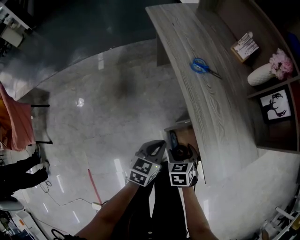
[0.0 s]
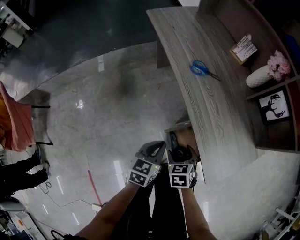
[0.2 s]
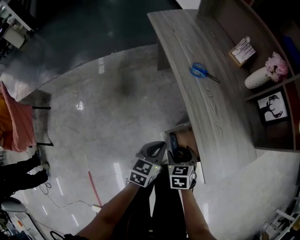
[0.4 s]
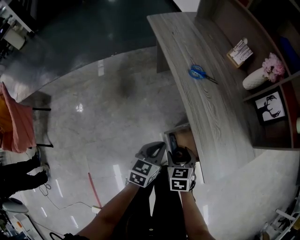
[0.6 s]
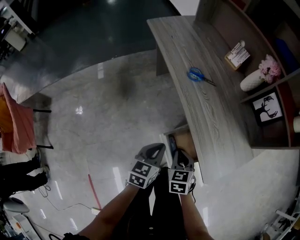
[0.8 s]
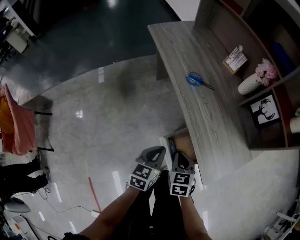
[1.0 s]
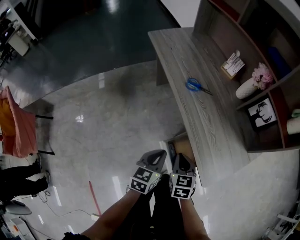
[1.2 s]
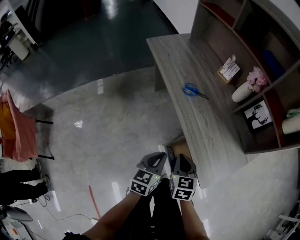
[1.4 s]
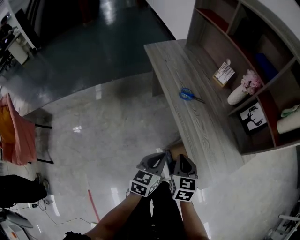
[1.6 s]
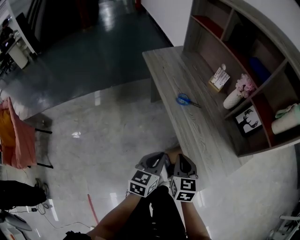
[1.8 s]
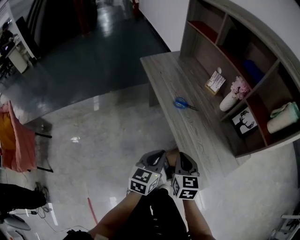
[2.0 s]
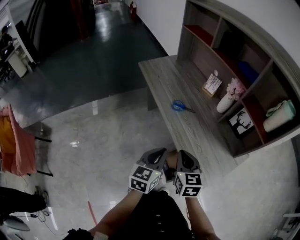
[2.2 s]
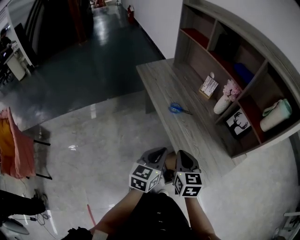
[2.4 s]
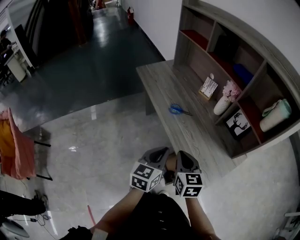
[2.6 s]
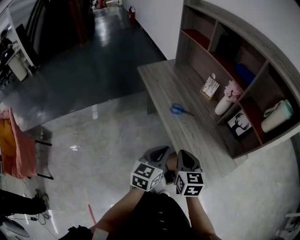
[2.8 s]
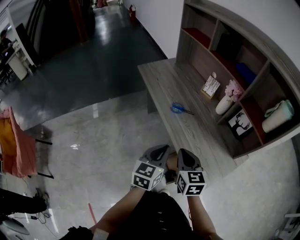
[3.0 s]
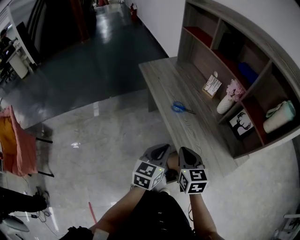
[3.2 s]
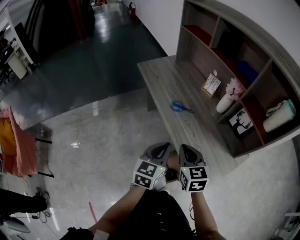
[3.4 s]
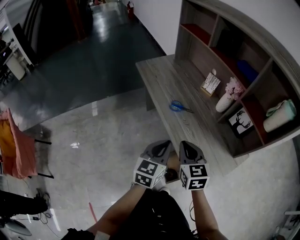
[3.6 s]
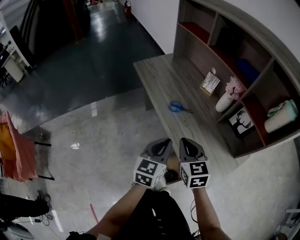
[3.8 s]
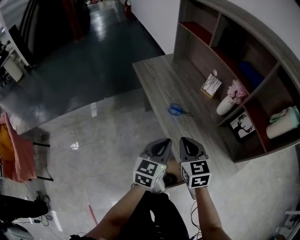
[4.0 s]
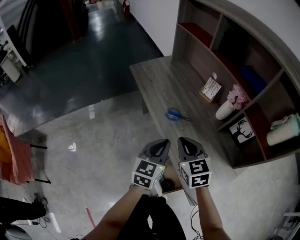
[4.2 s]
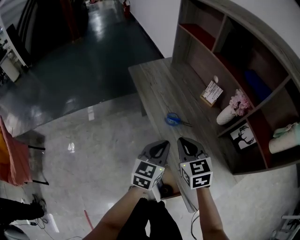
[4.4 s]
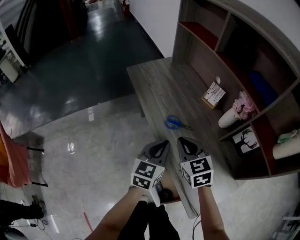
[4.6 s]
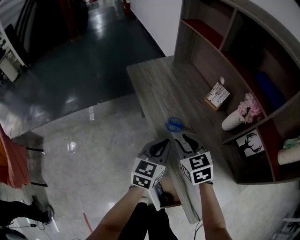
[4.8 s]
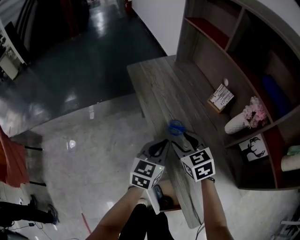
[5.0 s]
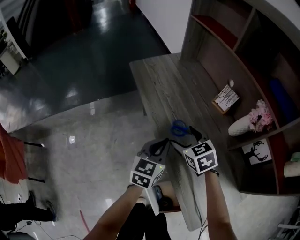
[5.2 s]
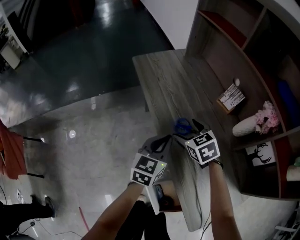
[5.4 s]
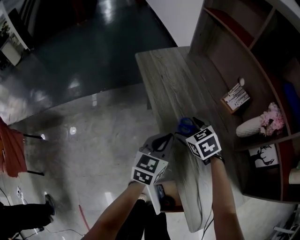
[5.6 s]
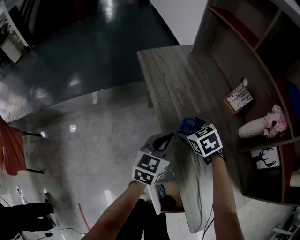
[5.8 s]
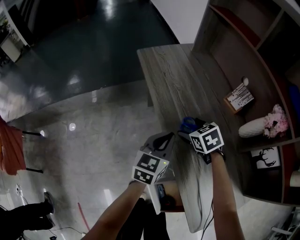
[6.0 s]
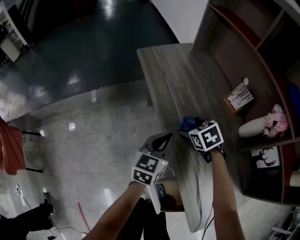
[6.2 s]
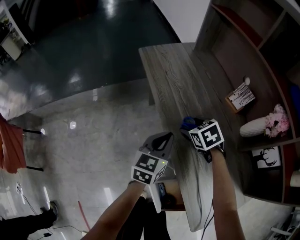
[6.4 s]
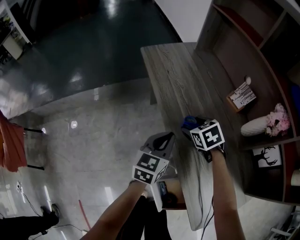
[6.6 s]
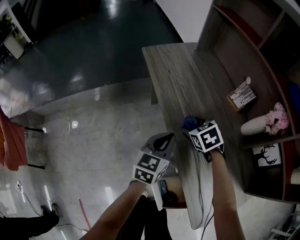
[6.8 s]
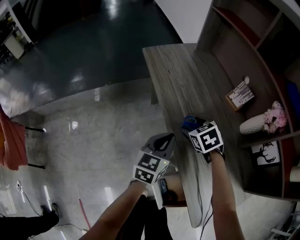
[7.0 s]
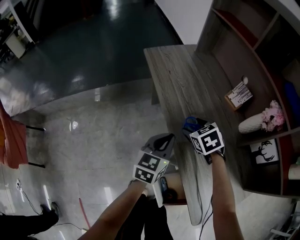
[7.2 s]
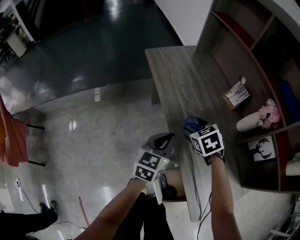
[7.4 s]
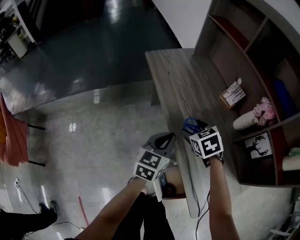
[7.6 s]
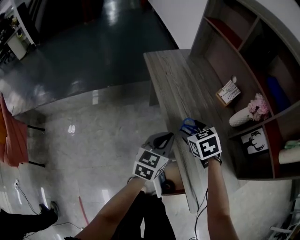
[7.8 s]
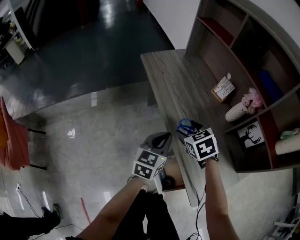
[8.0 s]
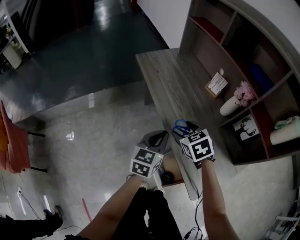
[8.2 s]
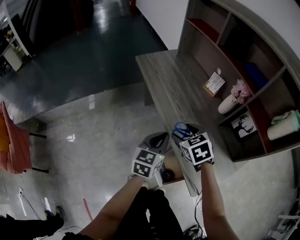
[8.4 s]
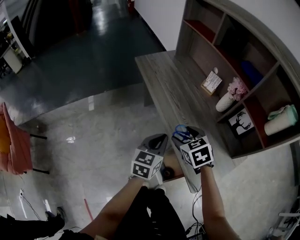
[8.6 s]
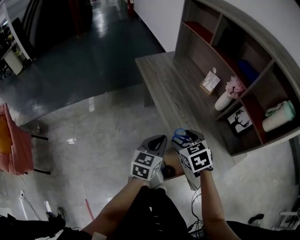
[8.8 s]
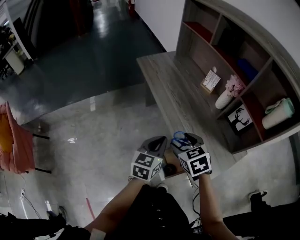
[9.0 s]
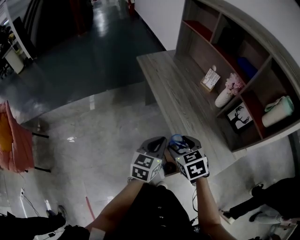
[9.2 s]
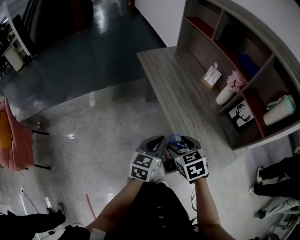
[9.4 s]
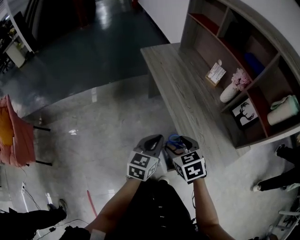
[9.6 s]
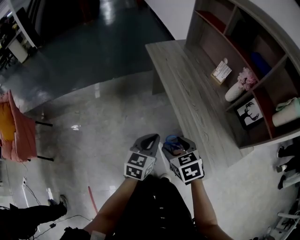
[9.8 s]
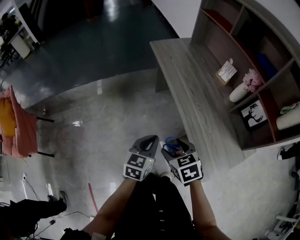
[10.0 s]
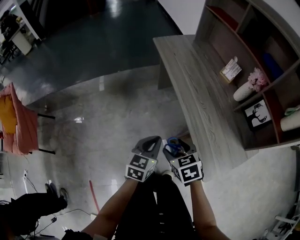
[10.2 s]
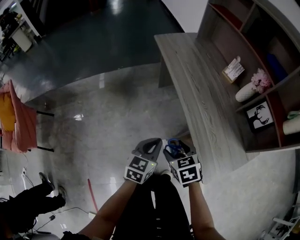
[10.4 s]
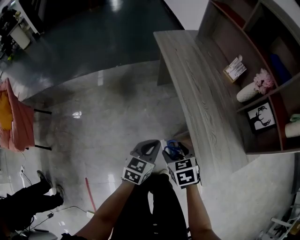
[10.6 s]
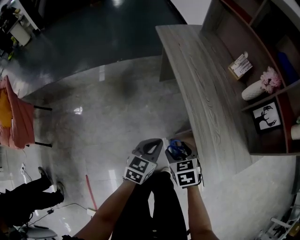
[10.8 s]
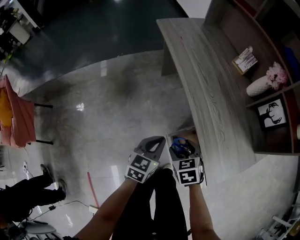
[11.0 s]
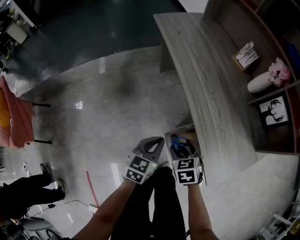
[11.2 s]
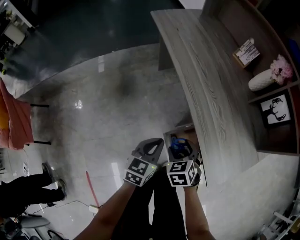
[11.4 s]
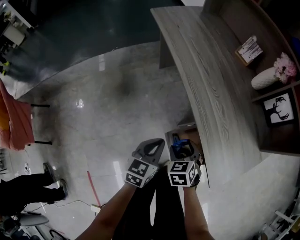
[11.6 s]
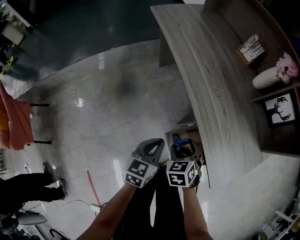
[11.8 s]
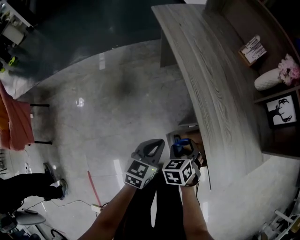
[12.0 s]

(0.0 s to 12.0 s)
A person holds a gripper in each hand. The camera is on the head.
0.0 s - 1.6 s: The left gripper goes approximately 10 cm upward; the right gripper shifts roughly 15 cm upward, swivels some 30 degrees, and closes.
1.6 s - 3.0 s: The right gripper is displaced upward by some 10 cm; the left gripper heads upward and forward, covering roughly 10 cm.
3.0 s - 4.4 s: Both grippers travel together forward, about 15 cm.
4.4 s - 6.0 s: The left gripper shifts approximately 15 cm forward and downward, while the right gripper goes roughly 25 cm downward and forward, turns by roughly 30 degrees, and opens up.
6.0 s - 7.6 s: The right gripper heads upward and backward, covering roughly 10 cm; the left gripper shifts roughly 5 cm backward.
7.6 s - 9.0 s: The left gripper moves backward, about 15 cm; the right gripper goes roughly 20 cm backward and upward.
9.0 s - 10.4 s: The left gripper is displaced downward and to the left by roughly 10 cm; the right gripper travels downward, to the left and backward by approximately 15 cm.
10.4 s - 12.0 s: Both grippers travel together downward, about 10 cm. The right gripper changes its angle by approximately 20 degrees.

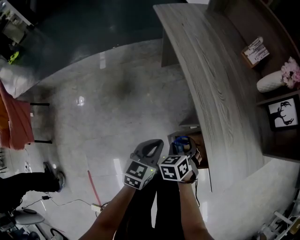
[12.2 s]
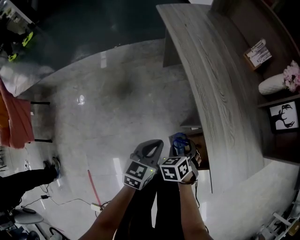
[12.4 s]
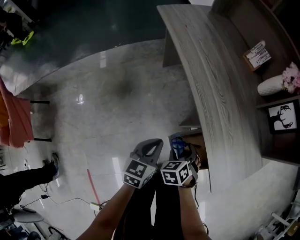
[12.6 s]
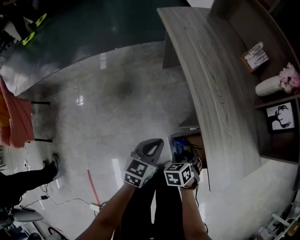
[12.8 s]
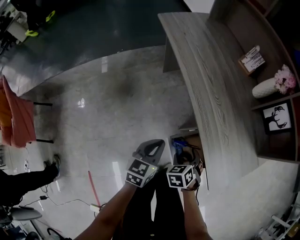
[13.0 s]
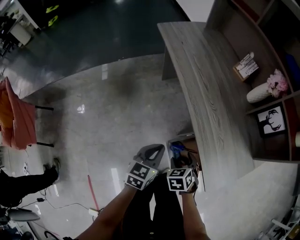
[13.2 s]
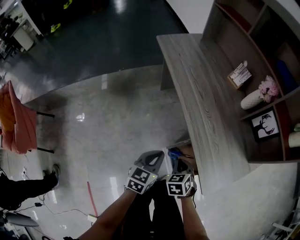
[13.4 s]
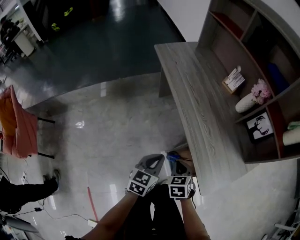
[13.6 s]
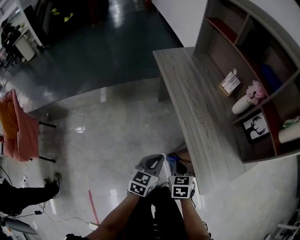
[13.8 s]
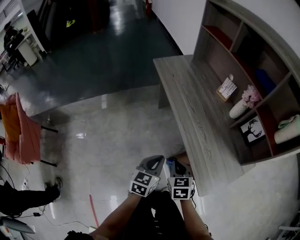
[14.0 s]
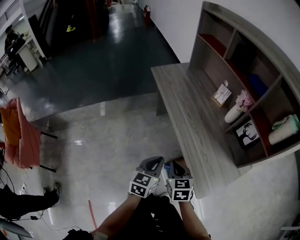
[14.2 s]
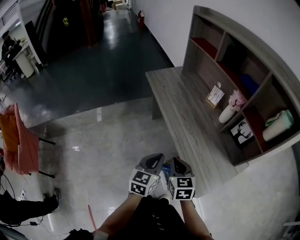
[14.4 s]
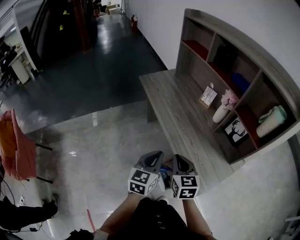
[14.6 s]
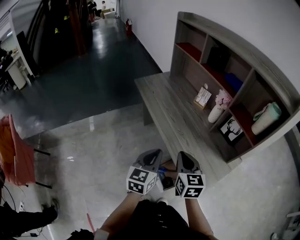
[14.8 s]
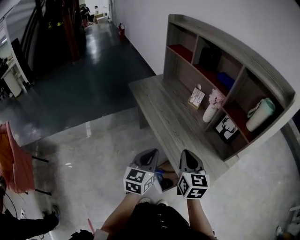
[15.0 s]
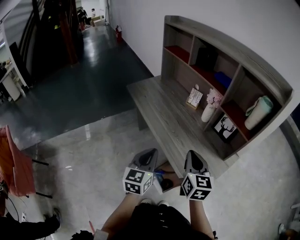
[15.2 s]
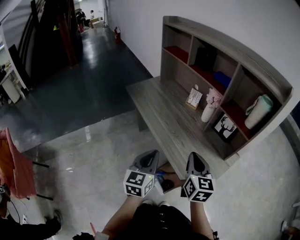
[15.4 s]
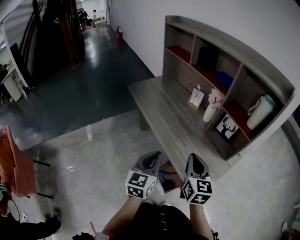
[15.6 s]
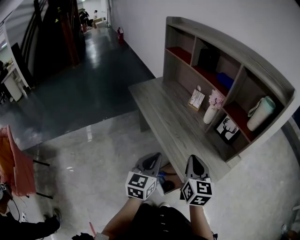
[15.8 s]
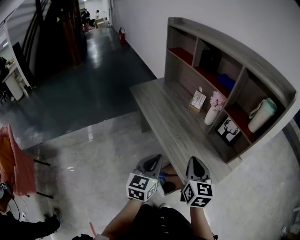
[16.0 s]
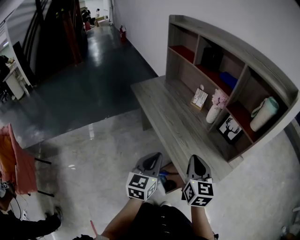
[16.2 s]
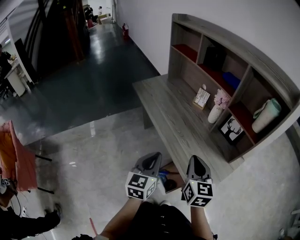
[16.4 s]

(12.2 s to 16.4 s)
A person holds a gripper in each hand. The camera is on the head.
12.2 s - 13.6 s: Both grippers move upward, about 10 cm. The right gripper closes its fingers.
13.6 s - 15.0 s: Both grippers move upward, approximately 20 cm. The right gripper tips its fingers upward by approximately 40 degrees.
15.0 s - 16.4 s: There are only small adjustments of the grippers.

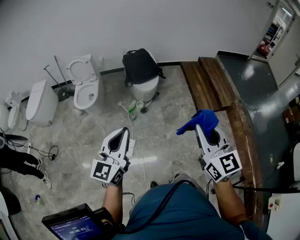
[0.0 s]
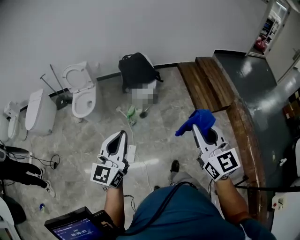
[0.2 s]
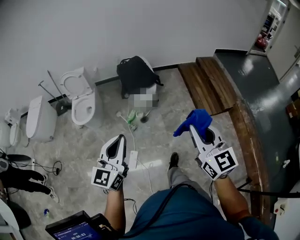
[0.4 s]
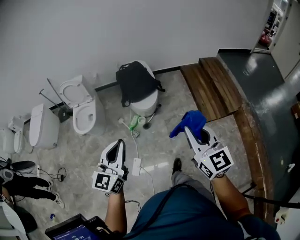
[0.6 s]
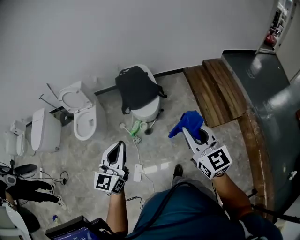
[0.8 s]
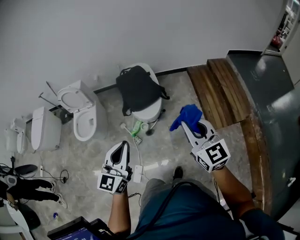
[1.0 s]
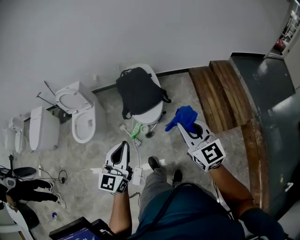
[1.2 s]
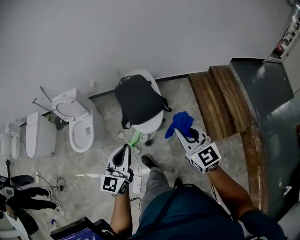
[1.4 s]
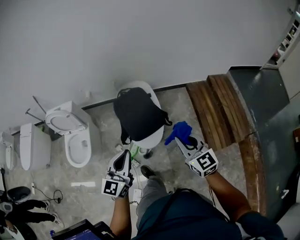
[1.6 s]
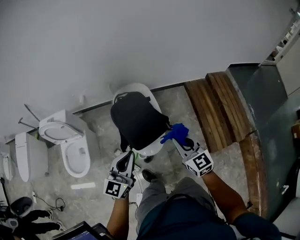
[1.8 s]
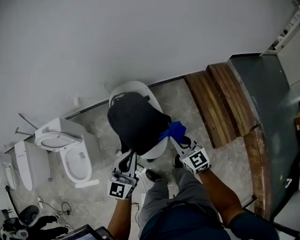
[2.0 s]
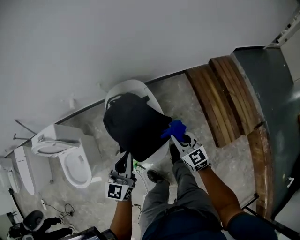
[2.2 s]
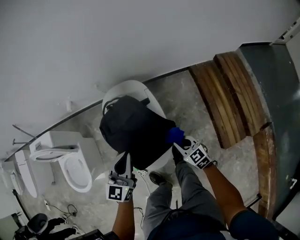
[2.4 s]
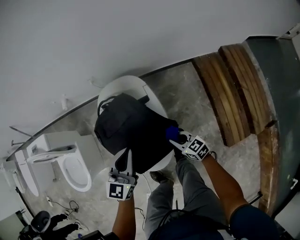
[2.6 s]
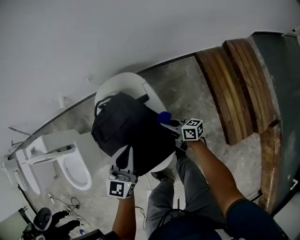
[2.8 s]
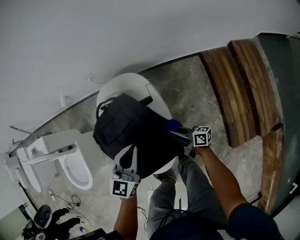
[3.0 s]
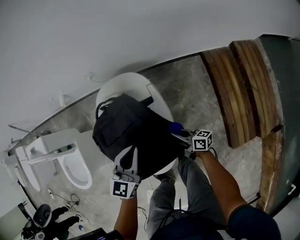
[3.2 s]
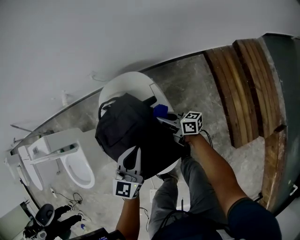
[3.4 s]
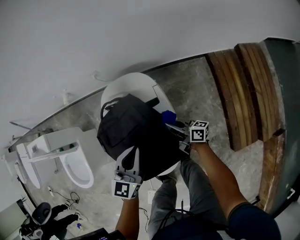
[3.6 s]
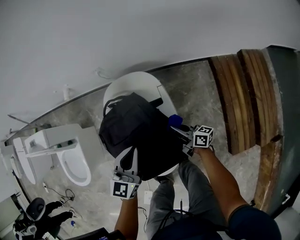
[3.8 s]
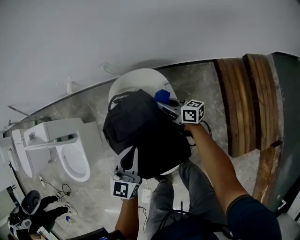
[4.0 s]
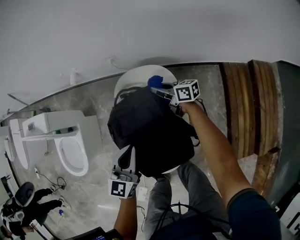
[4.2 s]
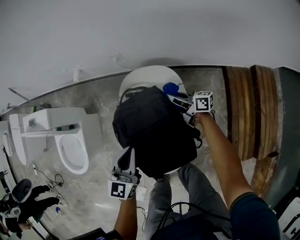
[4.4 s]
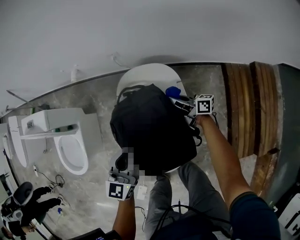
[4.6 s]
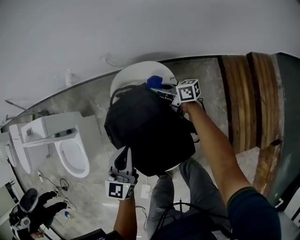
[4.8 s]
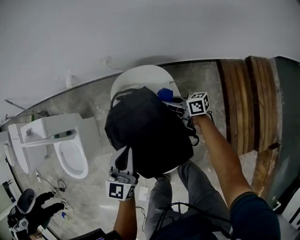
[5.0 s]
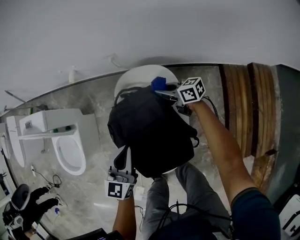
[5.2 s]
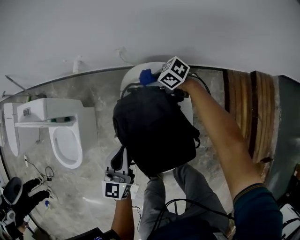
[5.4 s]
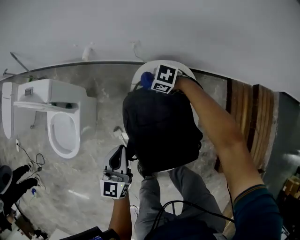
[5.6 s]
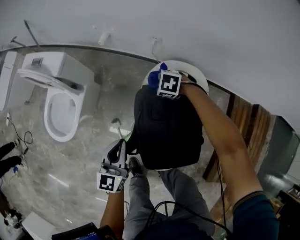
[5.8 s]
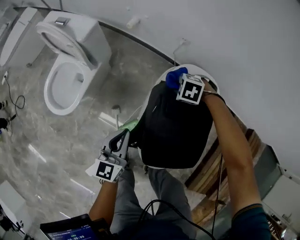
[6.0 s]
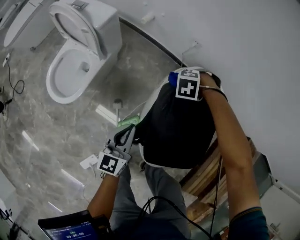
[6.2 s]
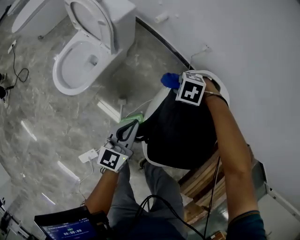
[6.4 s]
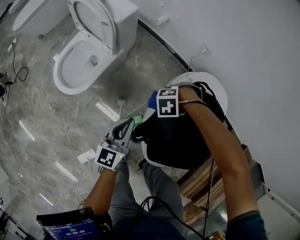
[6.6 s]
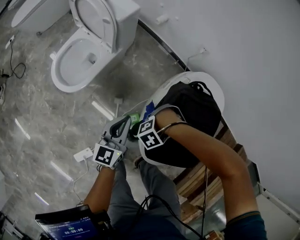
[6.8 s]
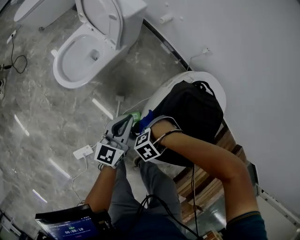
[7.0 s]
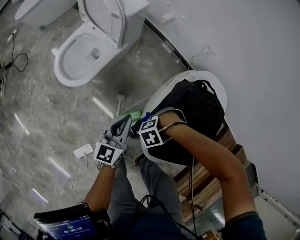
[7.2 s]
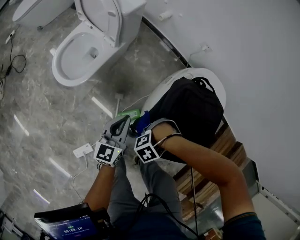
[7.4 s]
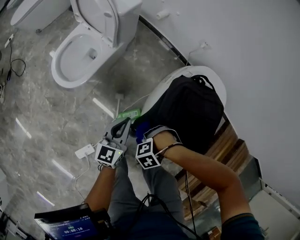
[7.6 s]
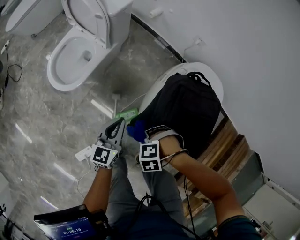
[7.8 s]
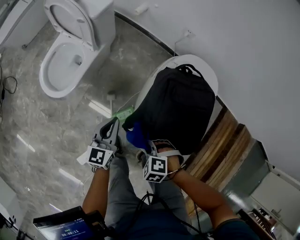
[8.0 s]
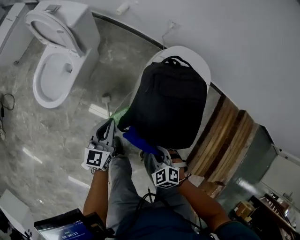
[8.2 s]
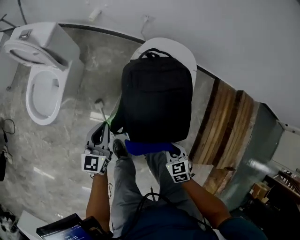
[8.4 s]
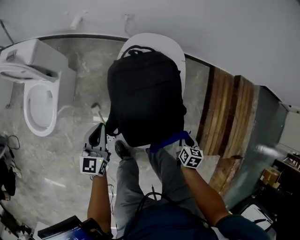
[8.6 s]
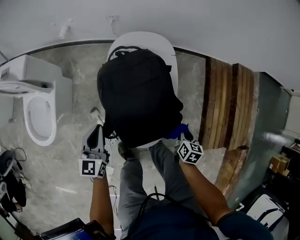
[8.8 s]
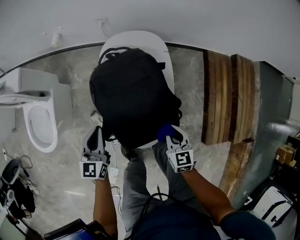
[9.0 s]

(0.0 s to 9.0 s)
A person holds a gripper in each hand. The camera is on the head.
0.0 s - 1.6 s: The pair of grippers is taken forward, roughly 60 cm.
1.6 s - 3.0 s: The right gripper moves downward and forward, some 60 cm, and rolls clockwise, seen from behind, by about 70 degrees. The left gripper goes some 50 cm forward and downward.
3.0 s - 4.4 s: The right gripper goes forward and backward, roughly 25 cm each way, reversing 3 times, while the left gripper goes some 15 cm to the left.
4.4 s - 6.0 s: The right gripper ends up approximately 20 cm from where it was, and tilts its fingers roughly 70 degrees downward. The left gripper ends up approximately 20 cm from where it was, and rotates roughly 20 degrees.
6.0 s - 7.6 s: The right gripper ends up about 35 cm from where it was, and rolls counterclockwise, seen from behind, by about 40 degrees, while the left gripper changes place by some 10 cm.
7.6 s - 9.0 s: The left gripper moves approximately 15 cm, and turns by roughly 20 degrees; the right gripper goes up and down, some 5 cm each way, reversing 2 times, and rolls clockwise, seen from behind, by roughly 120 degrees.
